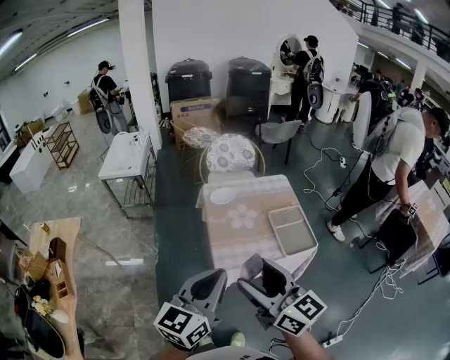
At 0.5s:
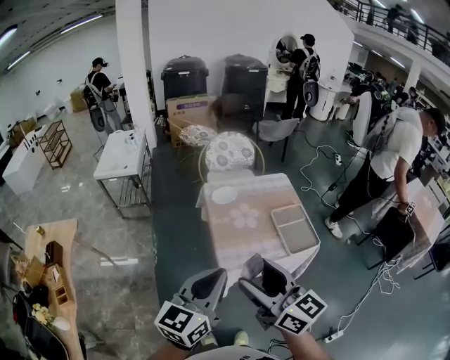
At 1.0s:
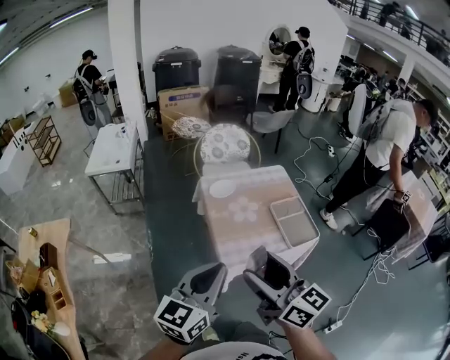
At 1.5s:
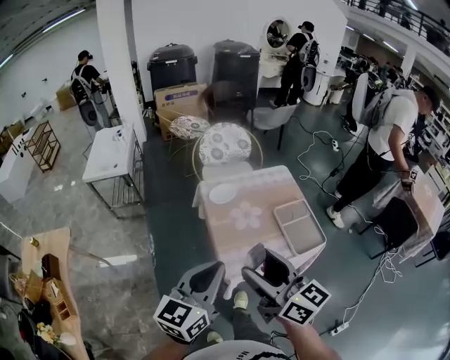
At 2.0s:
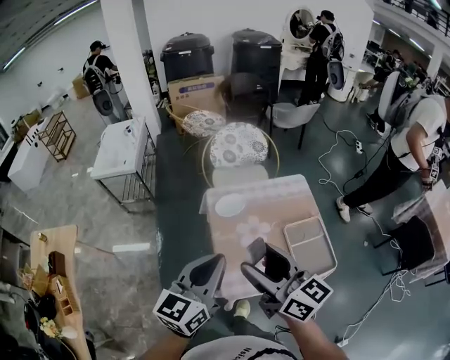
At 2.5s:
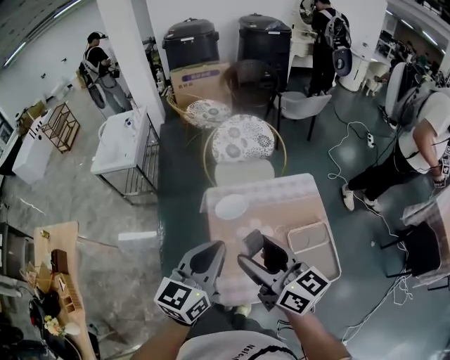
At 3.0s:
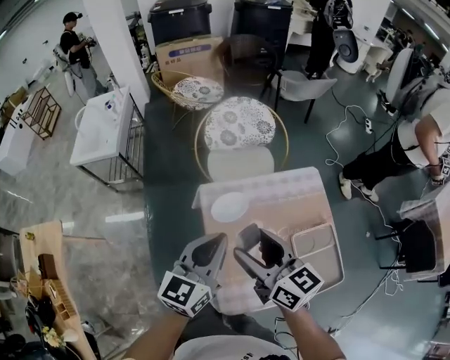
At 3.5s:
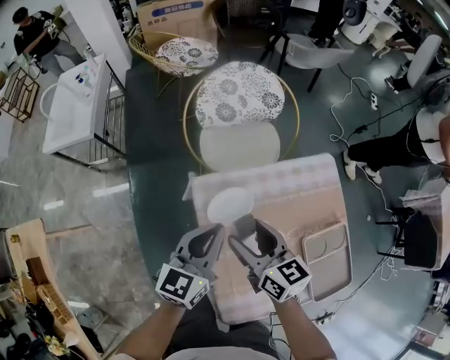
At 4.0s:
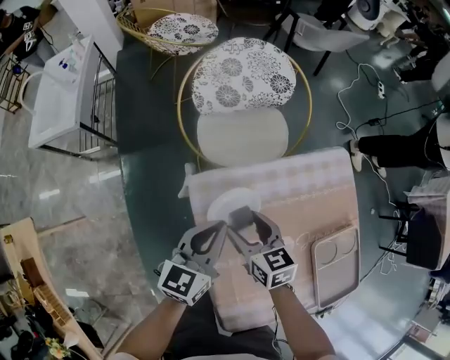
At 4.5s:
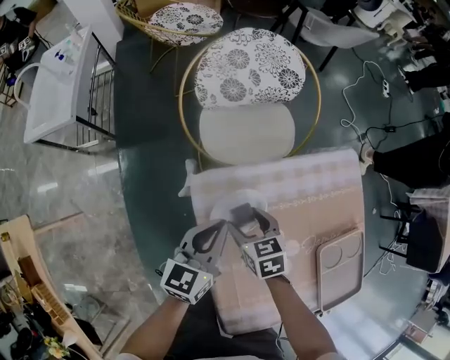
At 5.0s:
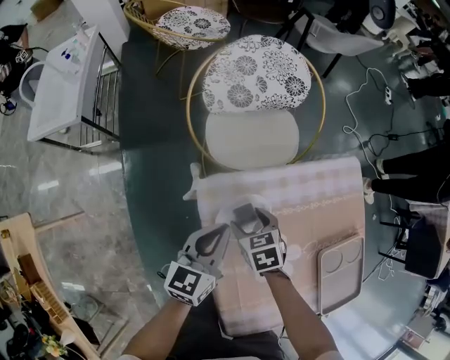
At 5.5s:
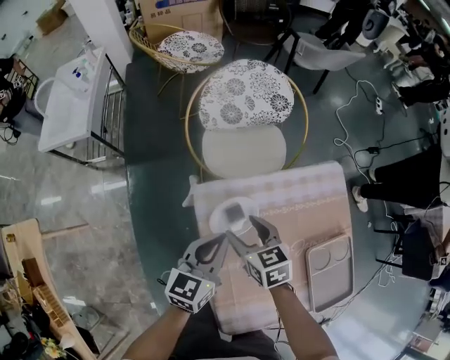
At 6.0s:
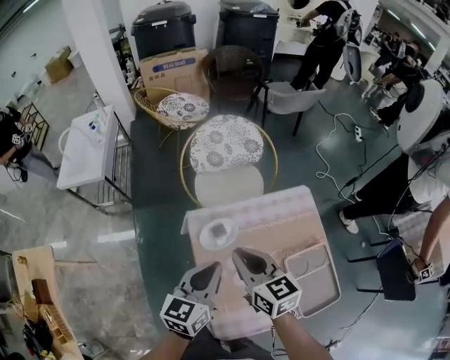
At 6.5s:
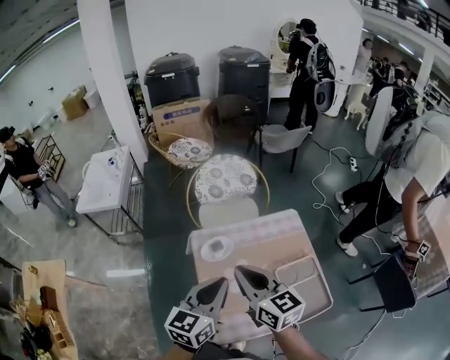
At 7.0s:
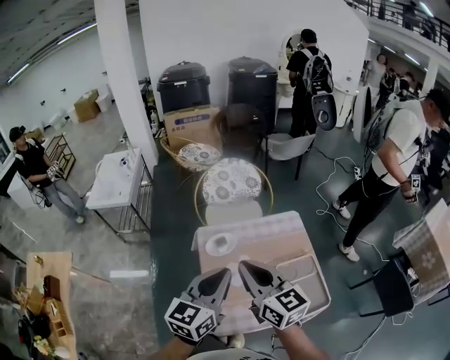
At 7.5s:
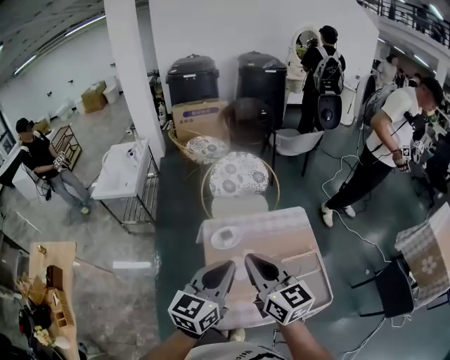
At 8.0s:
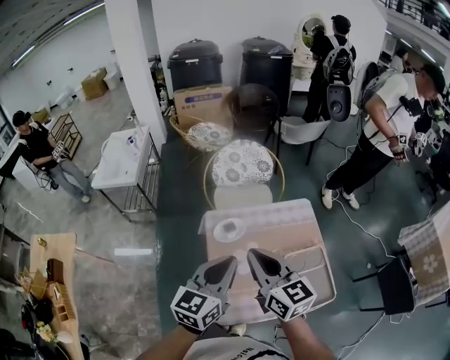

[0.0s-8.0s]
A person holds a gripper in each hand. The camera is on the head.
0.0s to 2.0s: Both grippers move forward, roughly 25 cm.
2.0s to 4.0s: The right gripper moves downward and forward, roughly 50 cm, and tilts its fingers approximately 40 degrees downward, while the left gripper shifts some 50 cm forward and downward.
4.0s to 6.0s: The right gripper is displaced upward by some 25 cm, and closes up. Meanwhile the left gripper heads upward and backward, covering roughly 20 cm.
6.0s to 8.0s: The two grippers go approximately 20 cm upward and backward.

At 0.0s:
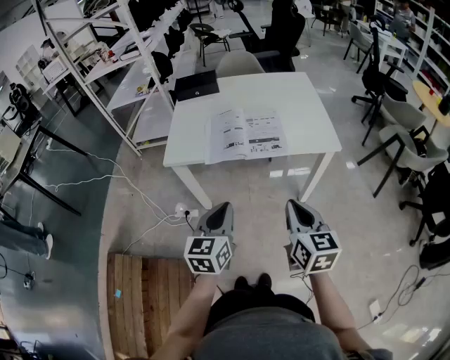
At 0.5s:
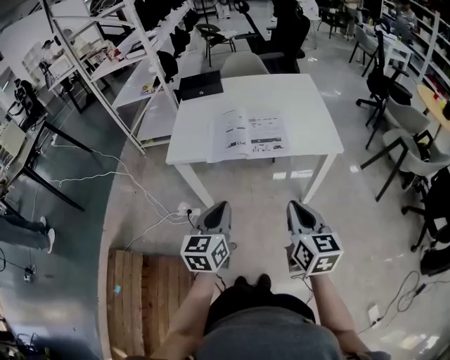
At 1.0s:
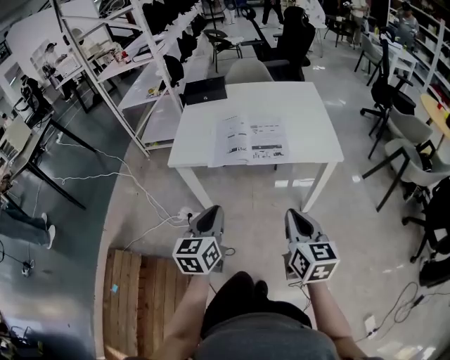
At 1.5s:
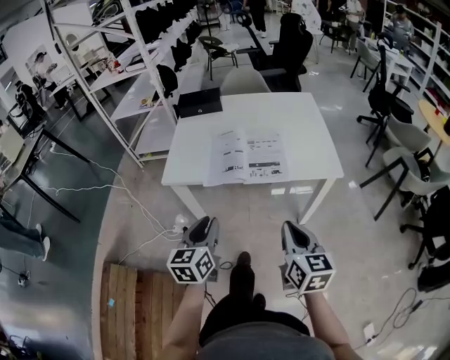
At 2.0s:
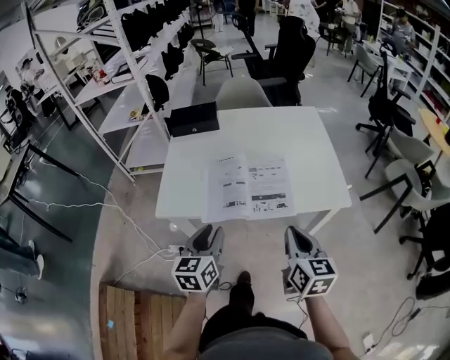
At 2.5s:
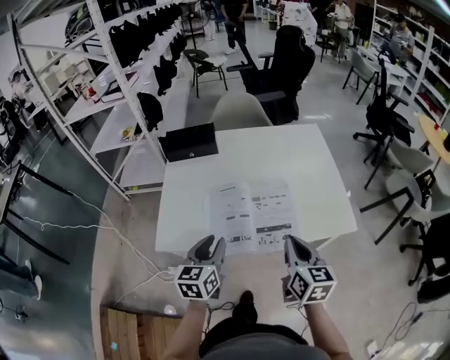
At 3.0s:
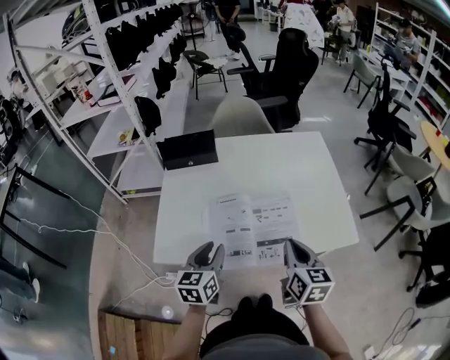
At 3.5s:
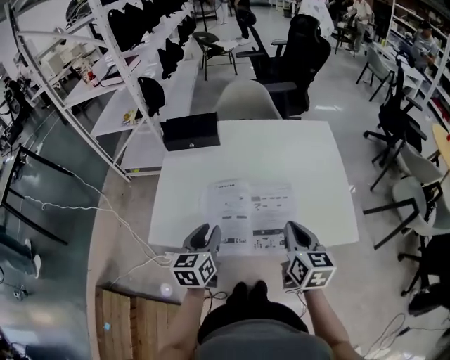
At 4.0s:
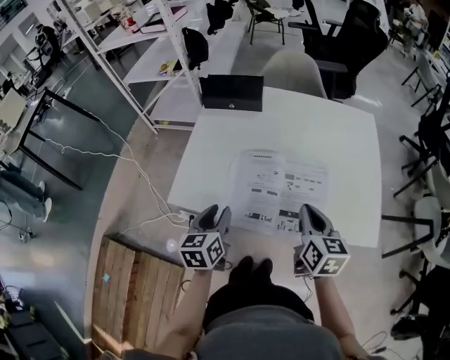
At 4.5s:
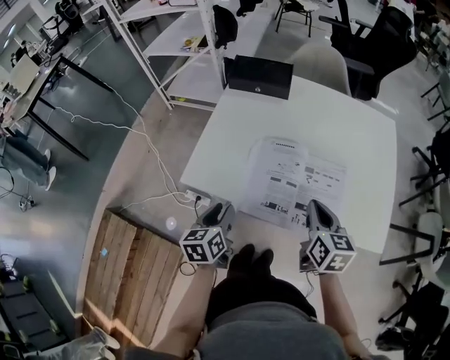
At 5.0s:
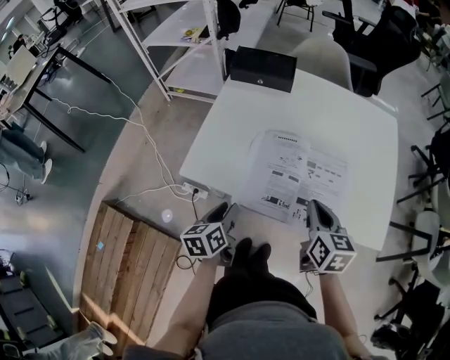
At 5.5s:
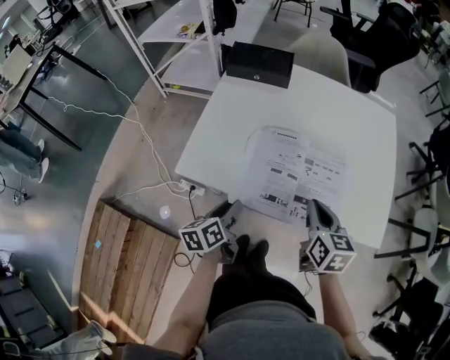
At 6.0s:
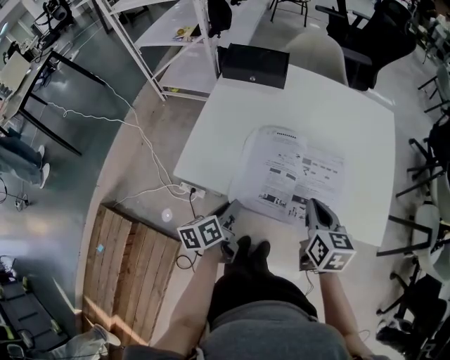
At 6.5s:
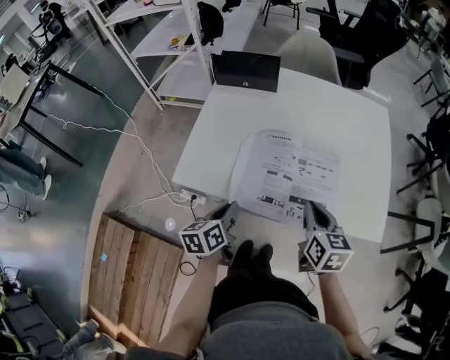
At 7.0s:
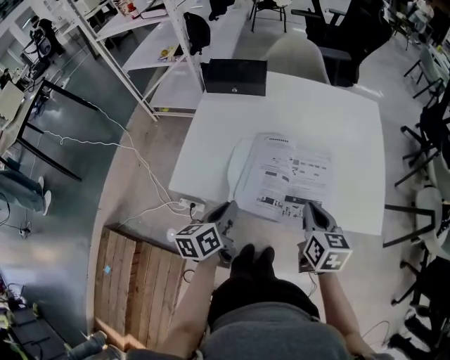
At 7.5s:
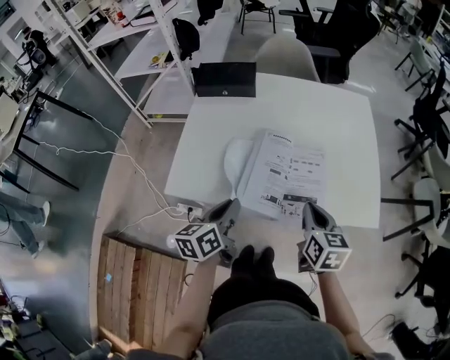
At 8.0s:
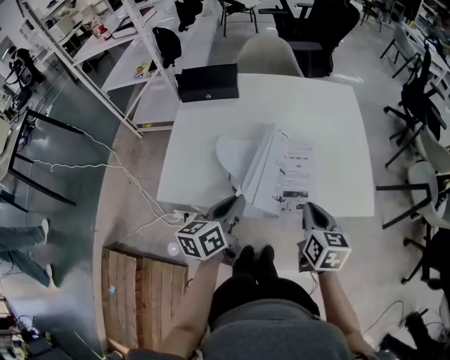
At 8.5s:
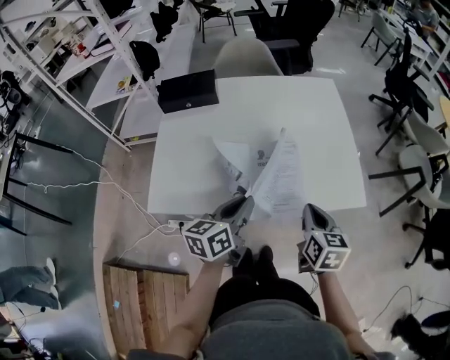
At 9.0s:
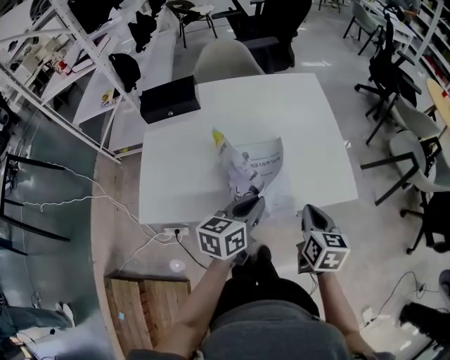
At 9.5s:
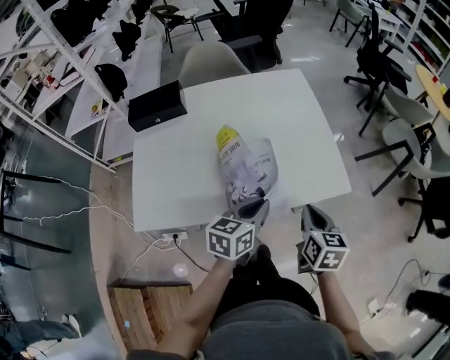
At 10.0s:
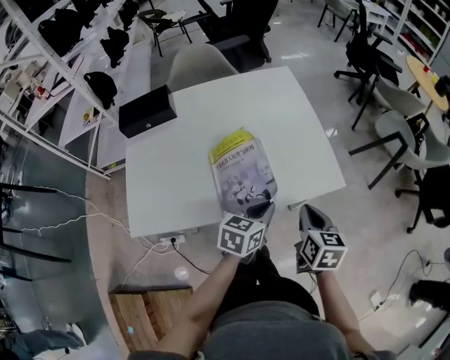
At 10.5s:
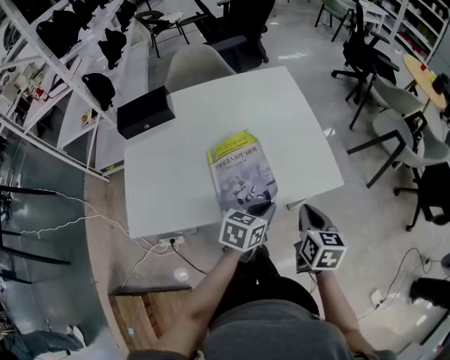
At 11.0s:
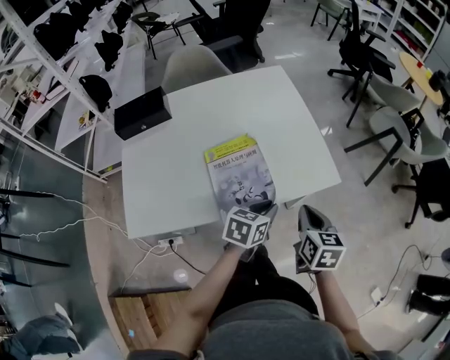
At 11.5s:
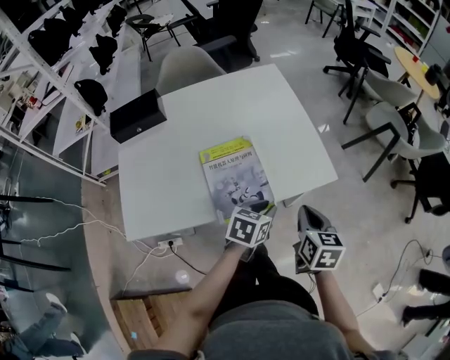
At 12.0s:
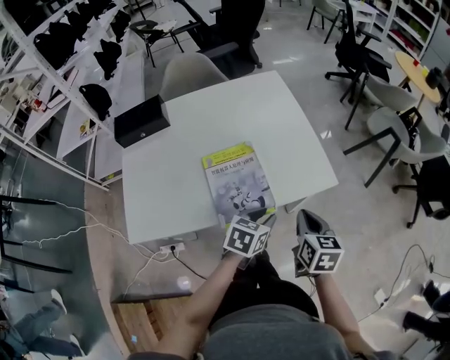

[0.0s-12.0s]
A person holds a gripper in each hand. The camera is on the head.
0.0s to 2.0s: The grippers both shift forward by approximately 15 cm. The left gripper opens.
2.0s to 4.0s: The left gripper shifts about 15 cm forward, to the left and downward. Meanwhile the right gripper travels forward by roughly 15 cm.
4.0s to 6.0s: The left gripper travels downward by approximately 5 cm, and rotates some 30 degrees.
6.0s to 8.0s: The right gripper goes some 5 cm to the right; the left gripper moves upward and to the right, roughly 15 cm, and rotates some 30 degrees.
8.0s to 10.0s: The left gripper goes about 20 cm to the right, and turns by some 40 degrees. The right gripper is displaced to the right by approximately 10 cm.
10.0s to 12.0s: The left gripper opens its fingers.

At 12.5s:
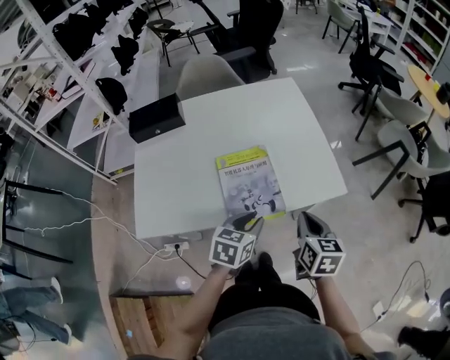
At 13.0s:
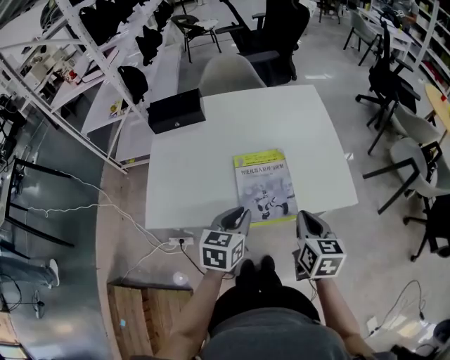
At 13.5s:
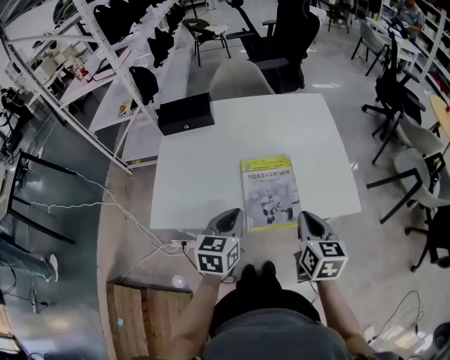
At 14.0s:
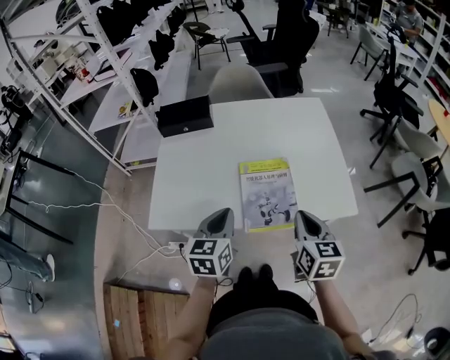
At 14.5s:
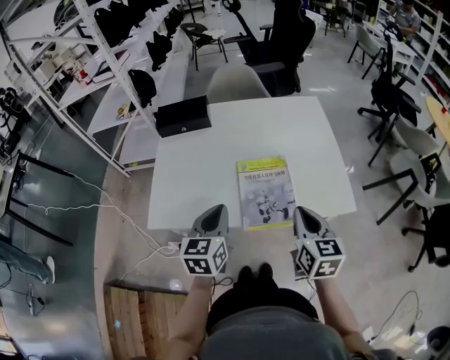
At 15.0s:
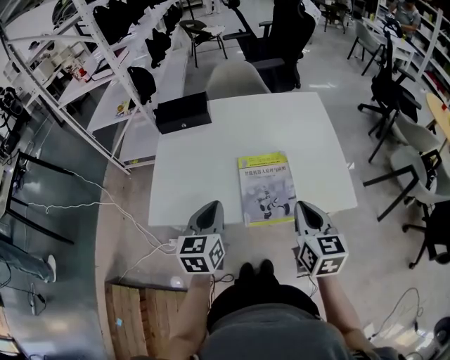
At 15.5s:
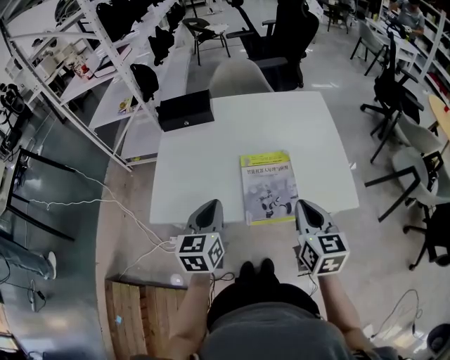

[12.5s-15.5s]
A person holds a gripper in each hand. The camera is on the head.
12.5s to 14.0s: The right gripper goes some 10 cm to the left and upward. The left gripper moves to the left and upward, roughly 15 cm, swivels roughly 30 degrees, and closes up.
14.0s to 15.5s: There are only small adjustments of the grippers.

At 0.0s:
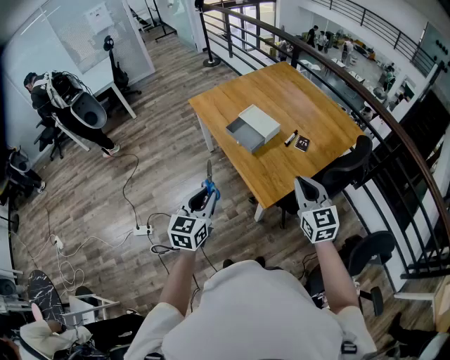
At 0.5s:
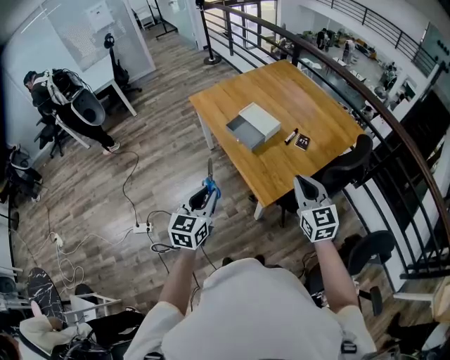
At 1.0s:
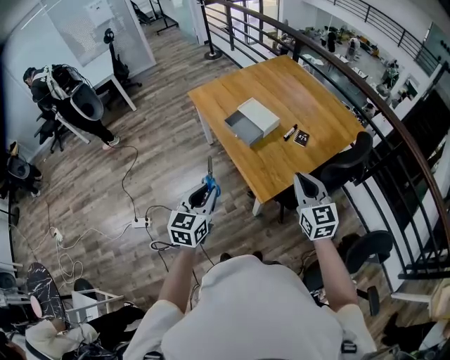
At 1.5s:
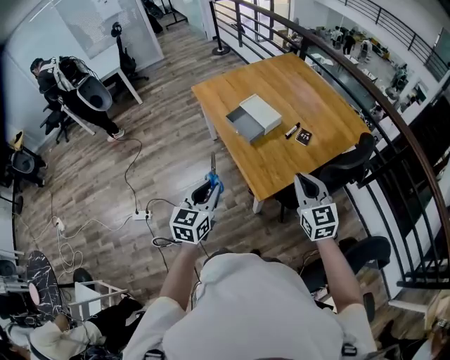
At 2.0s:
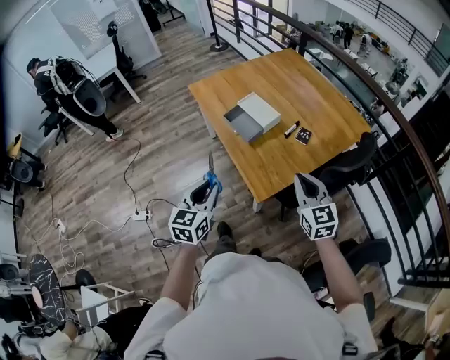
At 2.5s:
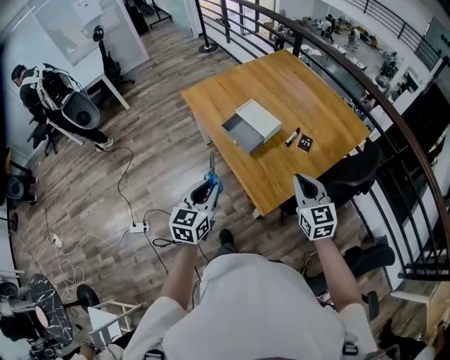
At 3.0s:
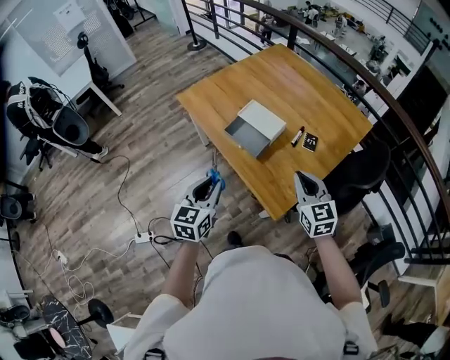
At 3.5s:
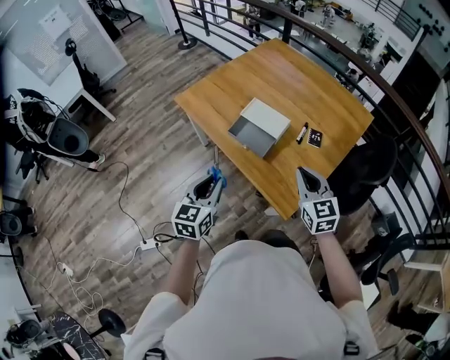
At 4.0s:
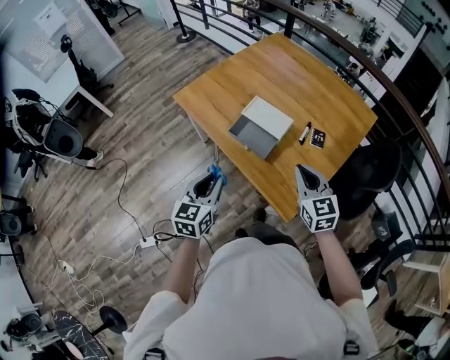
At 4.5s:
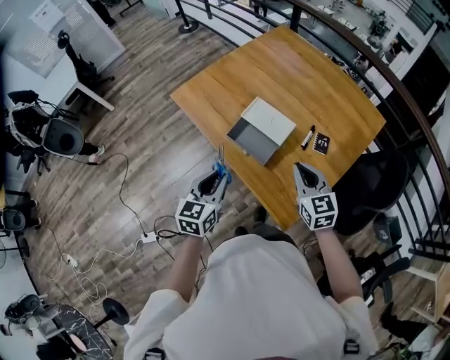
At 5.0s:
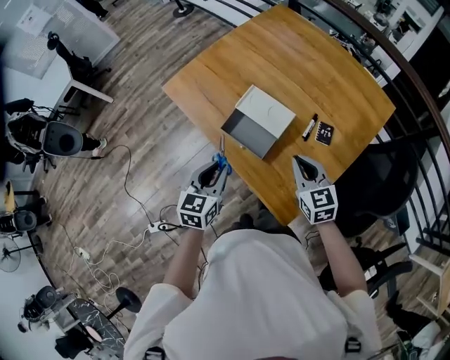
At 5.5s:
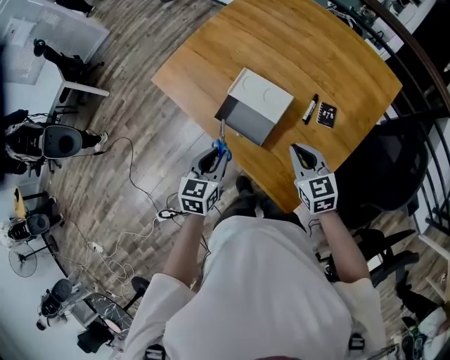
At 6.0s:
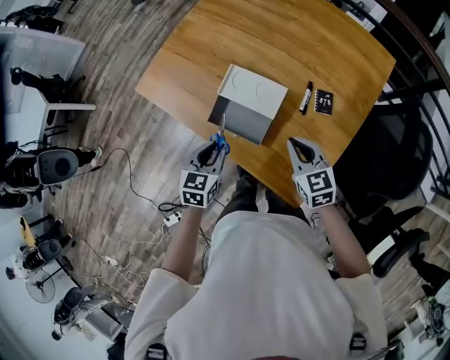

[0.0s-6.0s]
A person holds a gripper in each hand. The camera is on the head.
0.0s to 2.0s: The right gripper ends up some 5 cm from where it was. The left gripper travels to the right by about 5 cm.
2.0s to 4.0s: The two grippers go roughly 25 cm forward and to the left.
4.0s to 6.0s: The two grippers go roughly 25 cm forward and downward. The left gripper rotates about 20 degrees.
